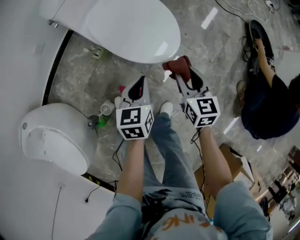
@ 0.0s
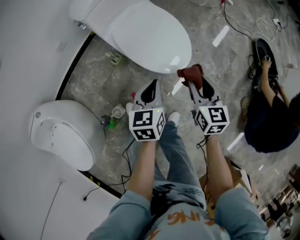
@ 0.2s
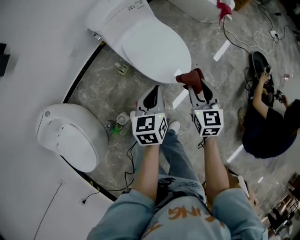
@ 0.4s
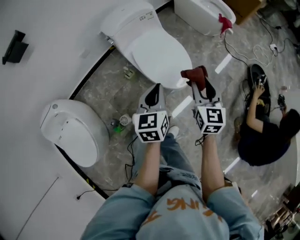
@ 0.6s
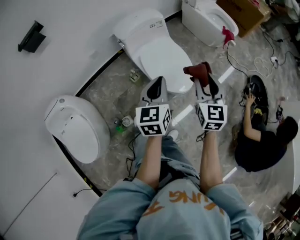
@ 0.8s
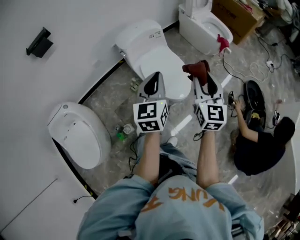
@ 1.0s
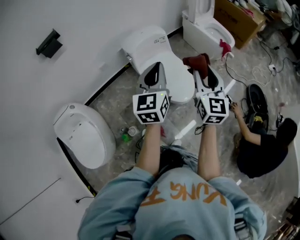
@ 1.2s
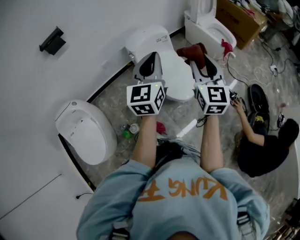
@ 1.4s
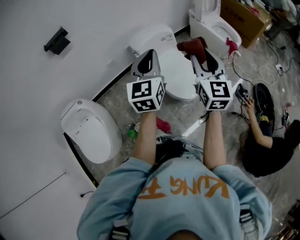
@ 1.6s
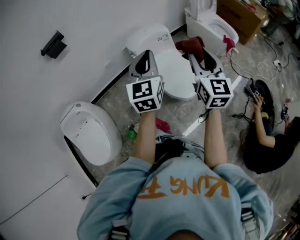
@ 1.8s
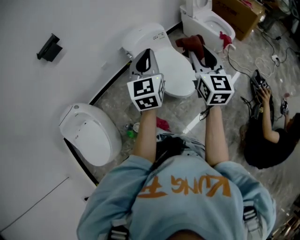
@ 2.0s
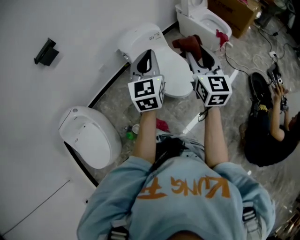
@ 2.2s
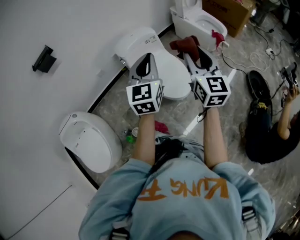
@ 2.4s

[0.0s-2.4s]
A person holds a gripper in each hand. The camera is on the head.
0.0s to 1.2s: Both grippers move upward, about 50 cm. The left gripper tips its fingers upward by roughly 30 degrees, while the right gripper tips its fingers upward by some 30 degrees.
1.2s to 2.4s: The grippers move only a little.

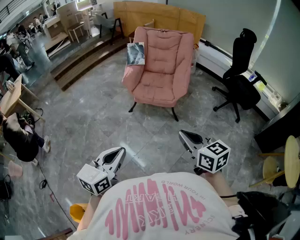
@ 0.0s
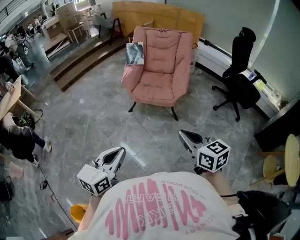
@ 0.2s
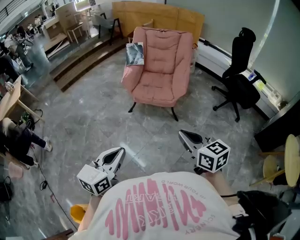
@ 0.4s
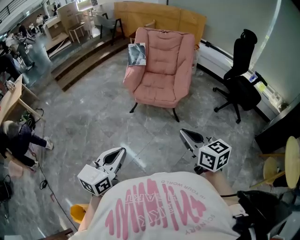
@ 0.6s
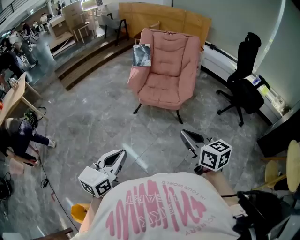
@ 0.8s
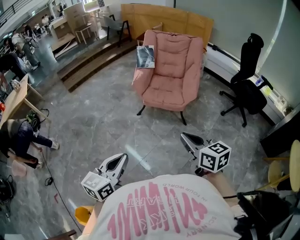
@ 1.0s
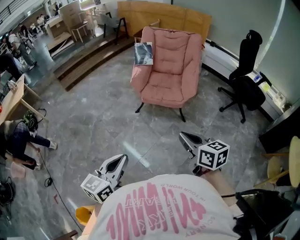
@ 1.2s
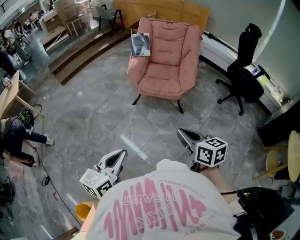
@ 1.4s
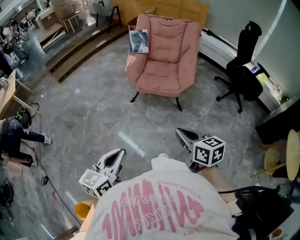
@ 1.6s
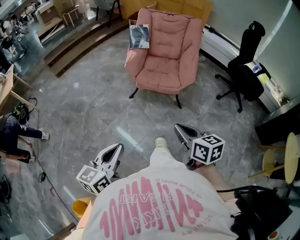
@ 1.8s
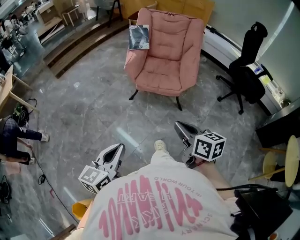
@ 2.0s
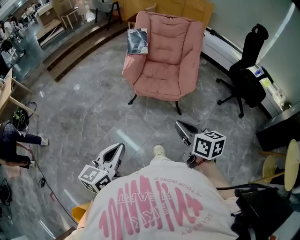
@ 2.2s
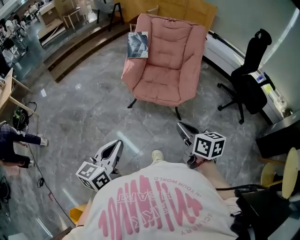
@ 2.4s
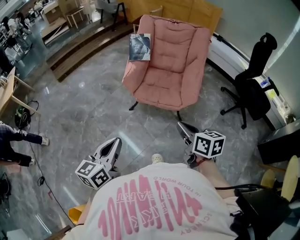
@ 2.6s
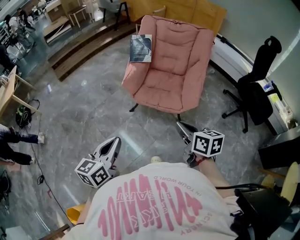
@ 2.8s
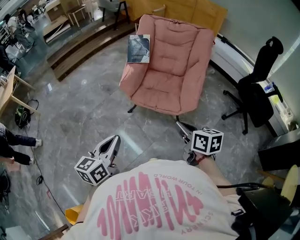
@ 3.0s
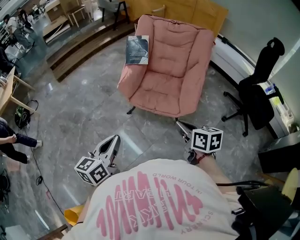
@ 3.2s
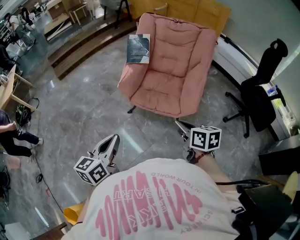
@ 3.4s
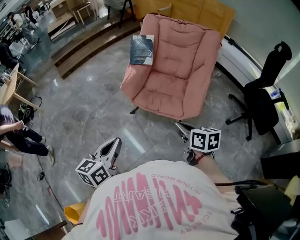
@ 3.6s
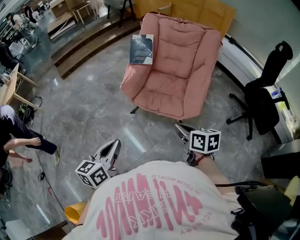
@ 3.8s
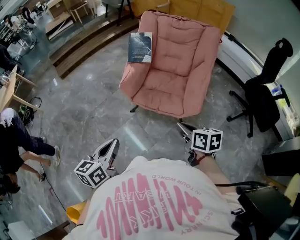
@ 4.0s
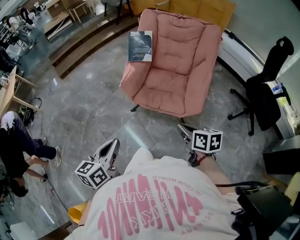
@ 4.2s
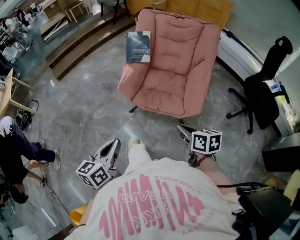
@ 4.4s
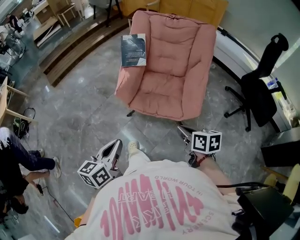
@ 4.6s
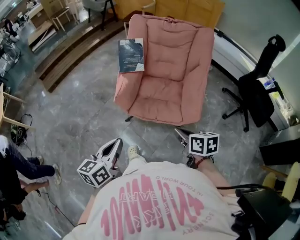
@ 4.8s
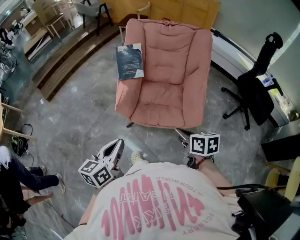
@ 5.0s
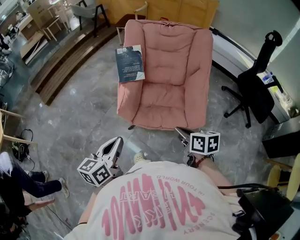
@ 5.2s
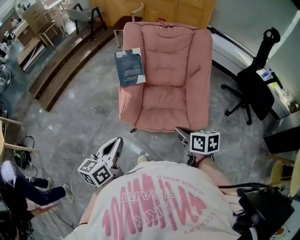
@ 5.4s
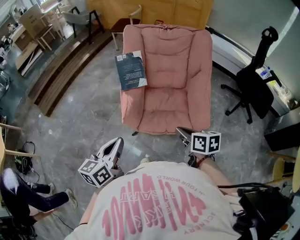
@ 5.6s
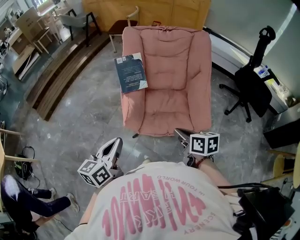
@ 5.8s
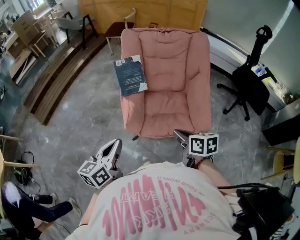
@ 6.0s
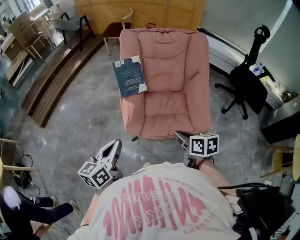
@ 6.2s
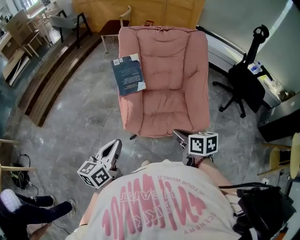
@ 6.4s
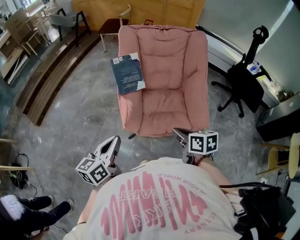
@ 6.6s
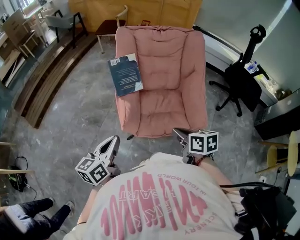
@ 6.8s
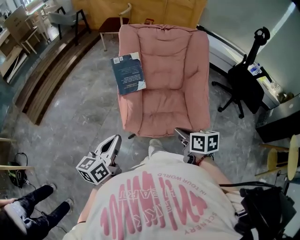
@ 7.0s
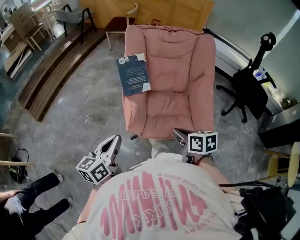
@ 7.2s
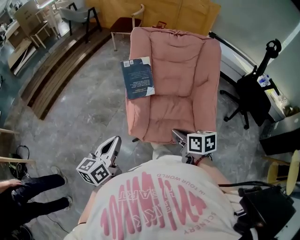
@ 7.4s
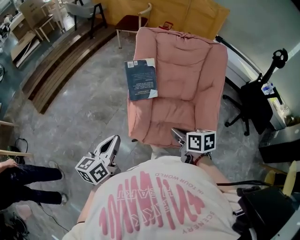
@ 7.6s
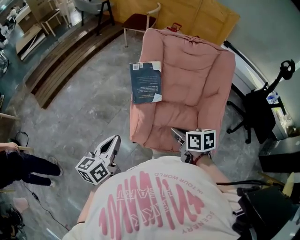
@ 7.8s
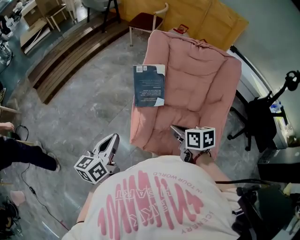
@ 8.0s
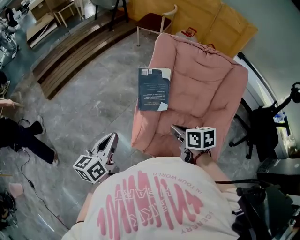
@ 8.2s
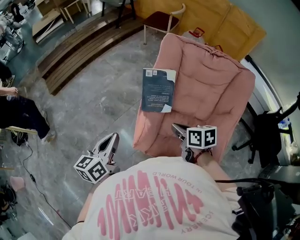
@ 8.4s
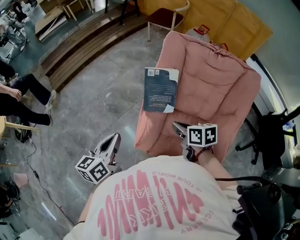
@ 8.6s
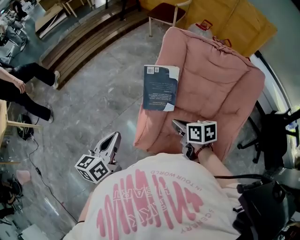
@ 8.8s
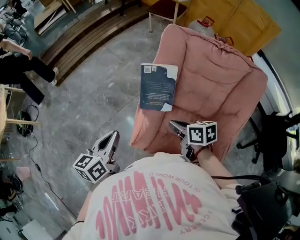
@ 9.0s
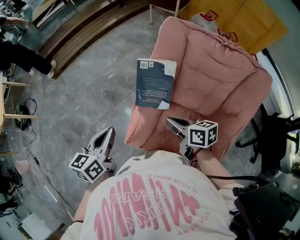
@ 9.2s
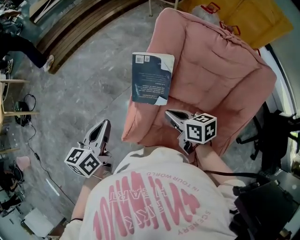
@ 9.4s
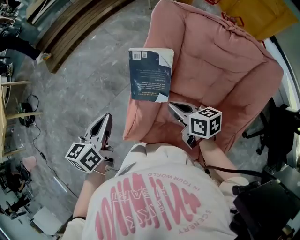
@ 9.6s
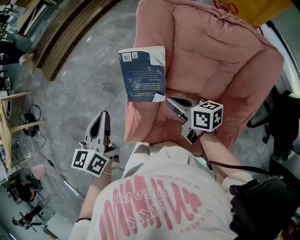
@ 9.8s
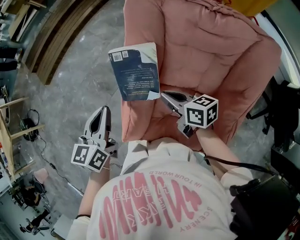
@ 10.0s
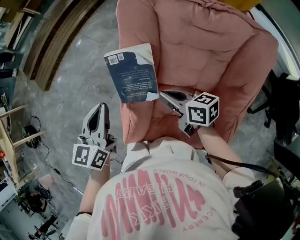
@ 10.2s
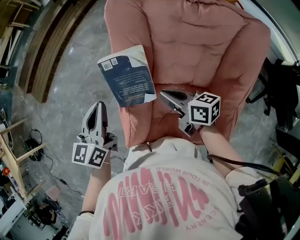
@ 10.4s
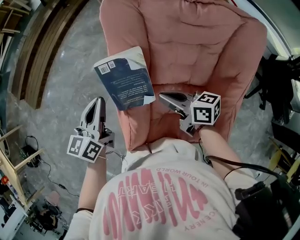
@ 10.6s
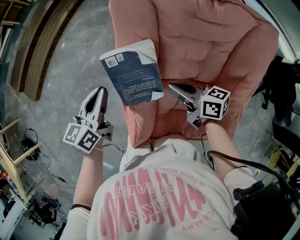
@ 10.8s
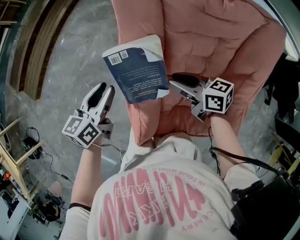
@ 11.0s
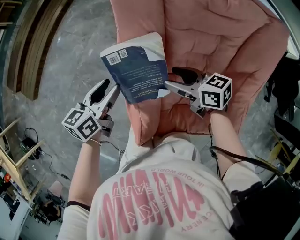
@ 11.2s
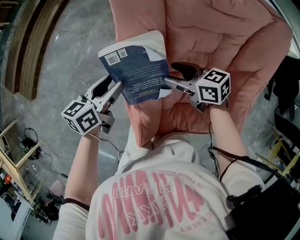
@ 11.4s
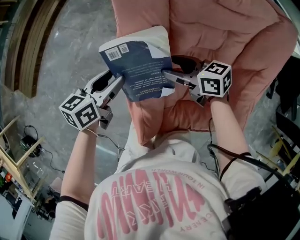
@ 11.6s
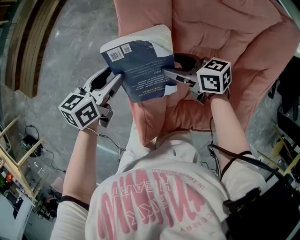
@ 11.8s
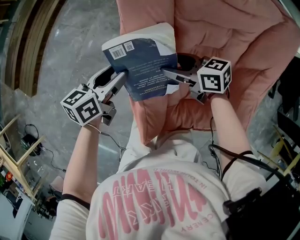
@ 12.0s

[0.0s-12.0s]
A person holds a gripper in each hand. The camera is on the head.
0.0s to 1.6s: The left gripper heads to the left, covering approximately 5 cm, while the right gripper moves to the left and downward, some 10 cm.
1.6s to 3.0s: Both grippers travel together forward, approximately 25 cm.
3.0s to 4.4s: The left gripper goes approximately 5 cm forward. The right gripper shifts about 5 cm downward.
4.4s to 6.0s: Both grippers move forward and to the left, approximately 20 cm.
6.0s to 7.6s: The grippers both shift forward by roughly 10 cm.
7.6s to 9.0s: The left gripper travels forward by some 10 cm, while the right gripper heads forward, covering about 15 cm, and turns by some 20 degrees.
9.0s to 10.4s: The right gripper goes approximately 10 cm to the right and forward, while the left gripper shifts approximately 15 cm forward and to the right.
10.4s to 12.0s: The right gripper is displaced forward and downward by about 10 cm, and opens up. The left gripper heads downward and forward, covering some 15 cm, swivels approximately 40 degrees, and opens.

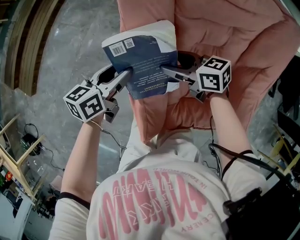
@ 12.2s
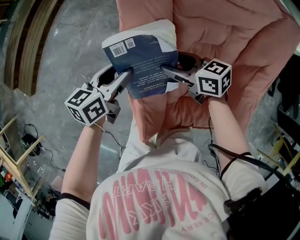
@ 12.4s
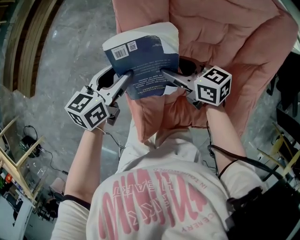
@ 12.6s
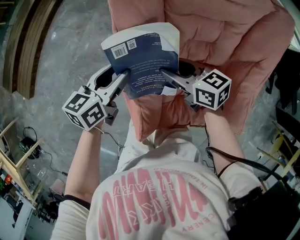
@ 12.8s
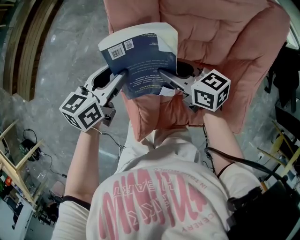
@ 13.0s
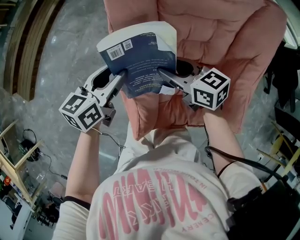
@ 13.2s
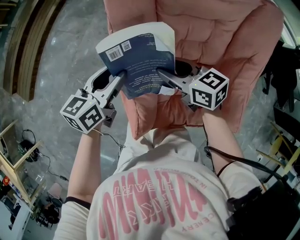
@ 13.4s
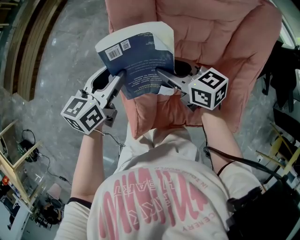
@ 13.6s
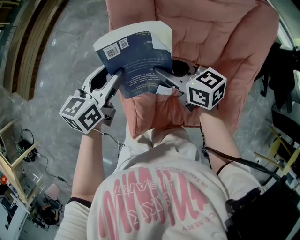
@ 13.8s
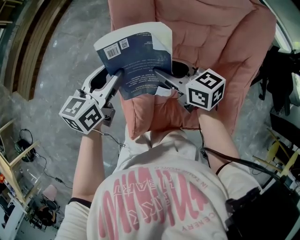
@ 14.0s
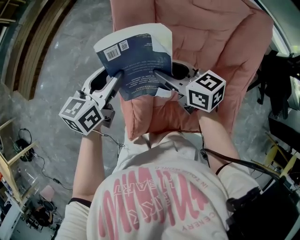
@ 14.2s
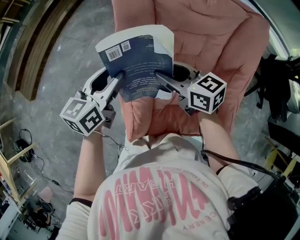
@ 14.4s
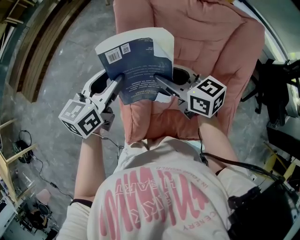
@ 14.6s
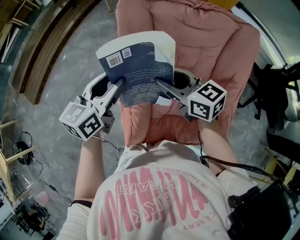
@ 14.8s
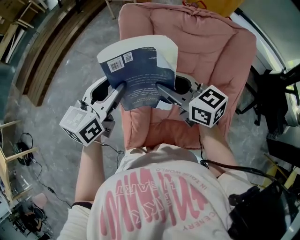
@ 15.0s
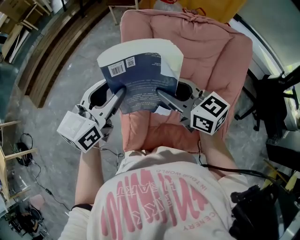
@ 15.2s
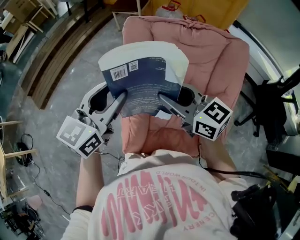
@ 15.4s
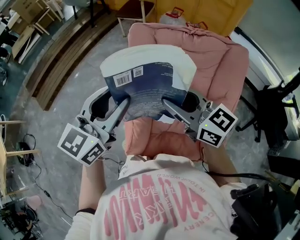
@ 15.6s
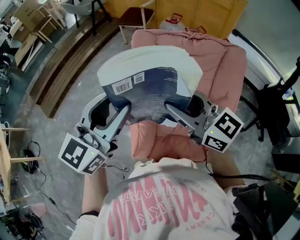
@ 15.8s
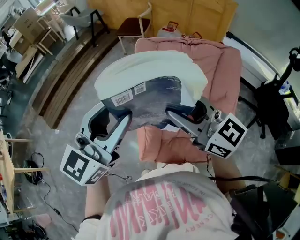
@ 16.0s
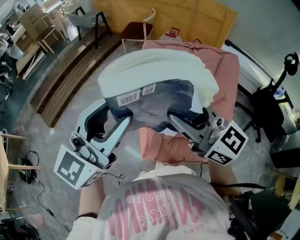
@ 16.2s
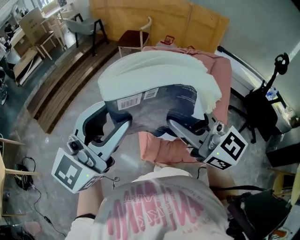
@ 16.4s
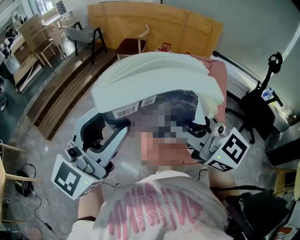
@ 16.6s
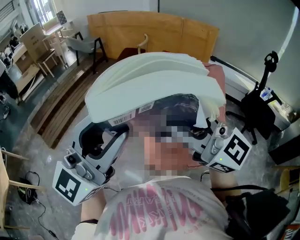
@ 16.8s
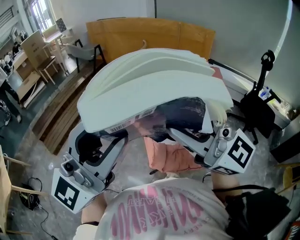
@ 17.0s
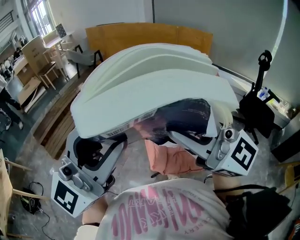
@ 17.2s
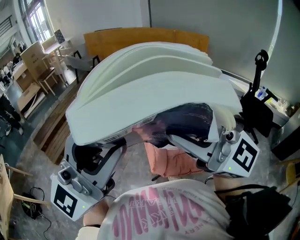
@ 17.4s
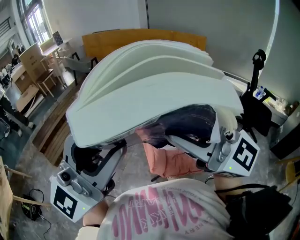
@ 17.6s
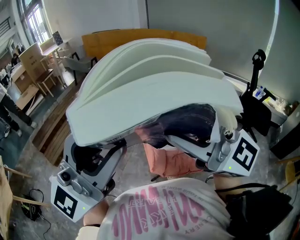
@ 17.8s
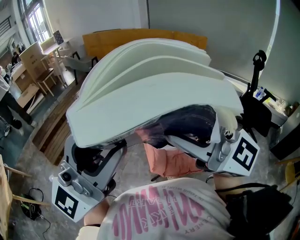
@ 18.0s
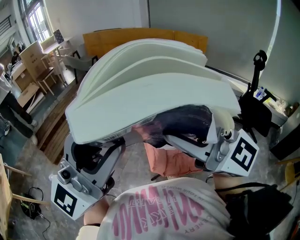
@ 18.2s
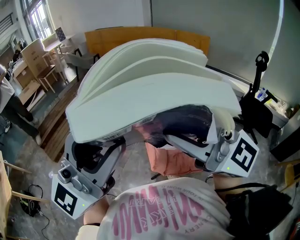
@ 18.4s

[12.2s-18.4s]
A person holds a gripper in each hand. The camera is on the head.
12.2s to 13.8s: The grippers both shift upward by about 5 cm. The right gripper closes up.
13.8s to 15.4s: The two grippers go about 15 cm upward. The left gripper rotates roughly 30 degrees. Meanwhile the right gripper swivels roughly 20 degrees.
15.4s to 16.8s: The right gripper is displaced upward, backward and to the left by roughly 30 cm, and turns by roughly 30 degrees, while the left gripper shifts about 30 cm backward, upward and to the left, and rotates roughly 40 degrees.
16.8s to 18.4s: The left gripper moves backward and upward, about 10 cm. The right gripper heads upward and backward, covering some 10 cm.

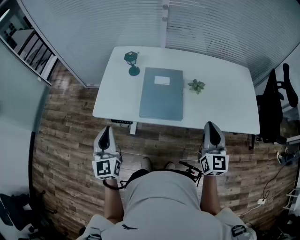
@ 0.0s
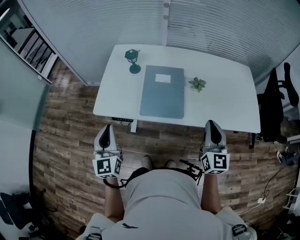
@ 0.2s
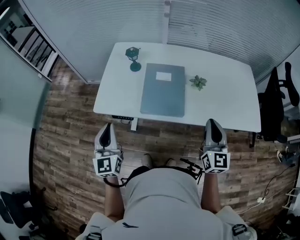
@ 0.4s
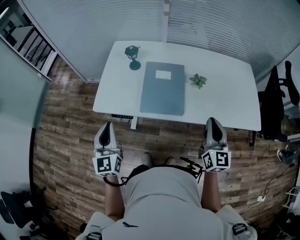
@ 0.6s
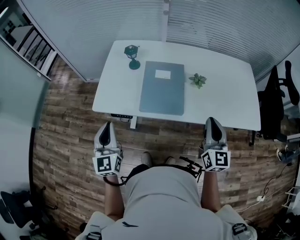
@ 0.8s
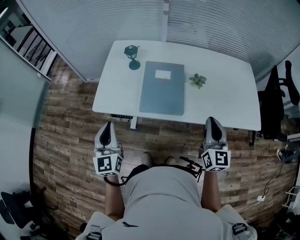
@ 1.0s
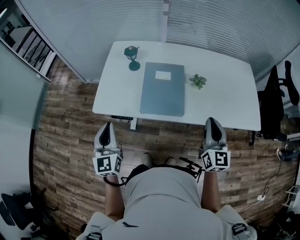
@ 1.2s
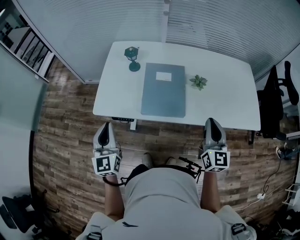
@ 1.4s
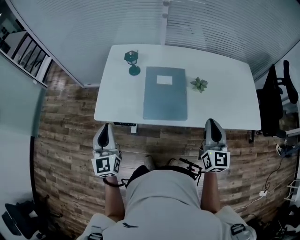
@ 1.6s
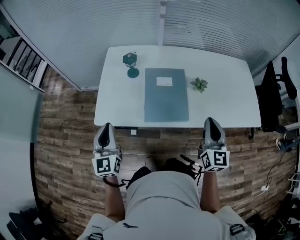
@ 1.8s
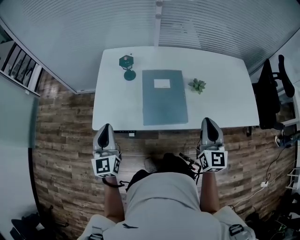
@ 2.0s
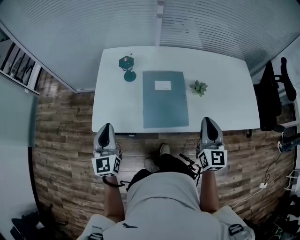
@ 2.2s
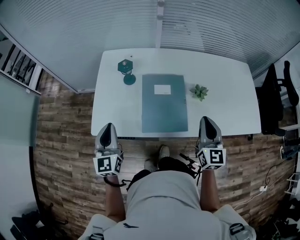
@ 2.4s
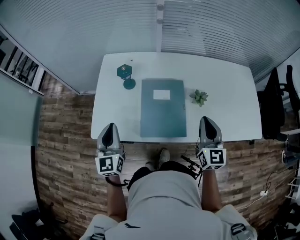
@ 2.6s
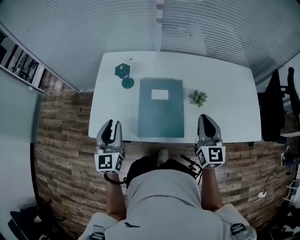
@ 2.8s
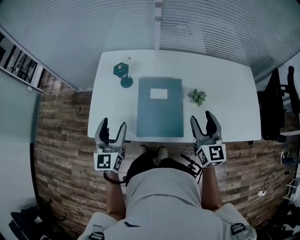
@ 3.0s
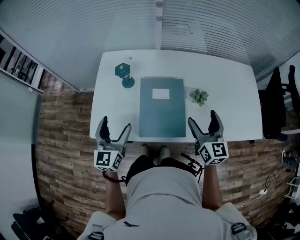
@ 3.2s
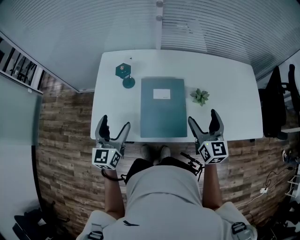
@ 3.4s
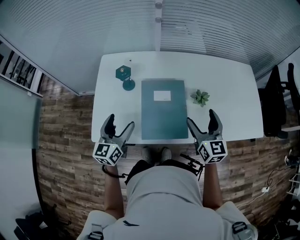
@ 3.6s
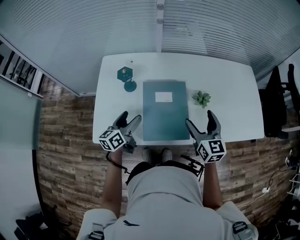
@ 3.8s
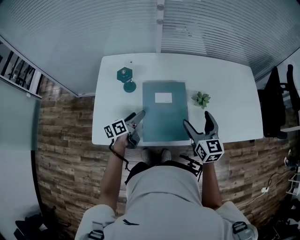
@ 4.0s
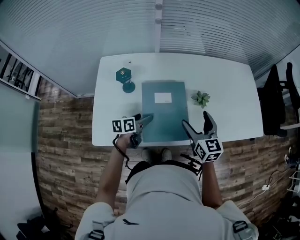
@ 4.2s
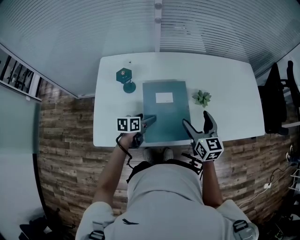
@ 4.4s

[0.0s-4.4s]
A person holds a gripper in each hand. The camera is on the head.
0.0s to 1.4s: The grippers stay close to where they were, moving slightly.
1.4s to 3.0s: The two grippers go some 15 cm forward. The left gripper opens; the right gripper opens.
3.0s to 4.4s: The left gripper travels downward, forward and to the right by about 25 cm, and tilts its fingers about 30 degrees downward, while the right gripper travels downward by roughly 5 cm, and opens.
